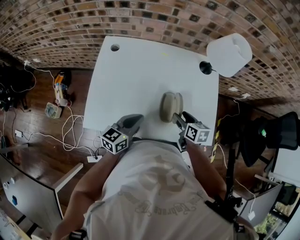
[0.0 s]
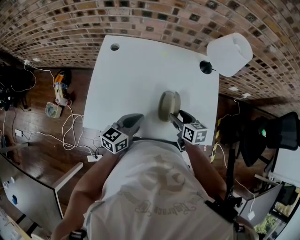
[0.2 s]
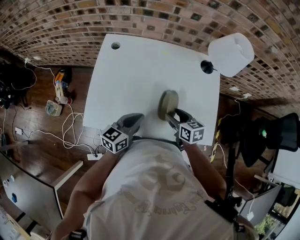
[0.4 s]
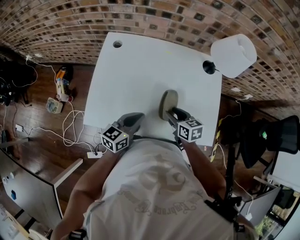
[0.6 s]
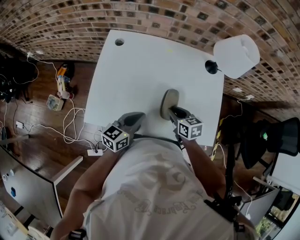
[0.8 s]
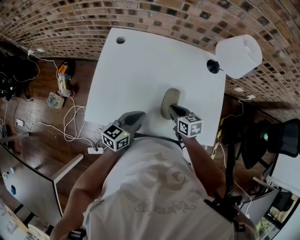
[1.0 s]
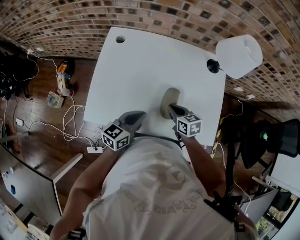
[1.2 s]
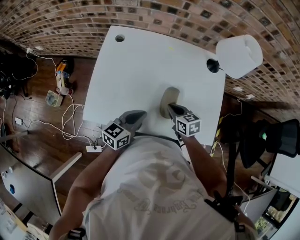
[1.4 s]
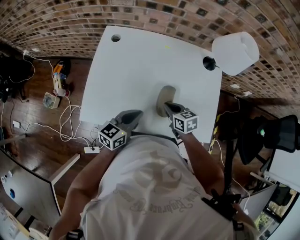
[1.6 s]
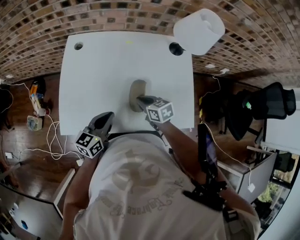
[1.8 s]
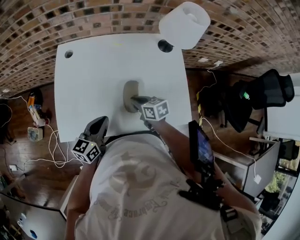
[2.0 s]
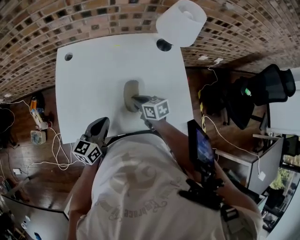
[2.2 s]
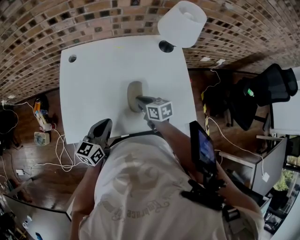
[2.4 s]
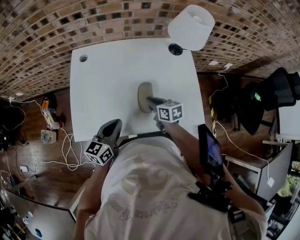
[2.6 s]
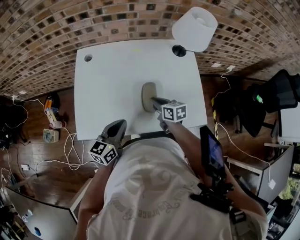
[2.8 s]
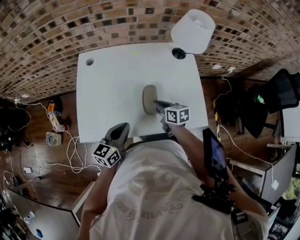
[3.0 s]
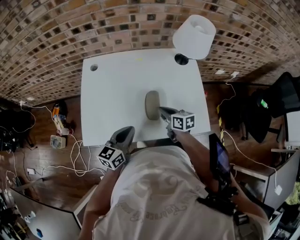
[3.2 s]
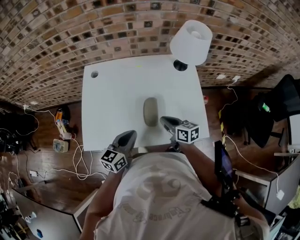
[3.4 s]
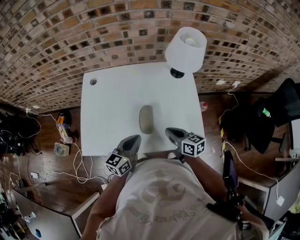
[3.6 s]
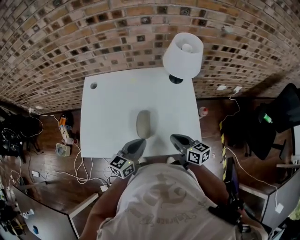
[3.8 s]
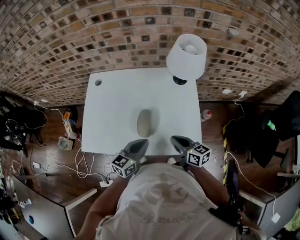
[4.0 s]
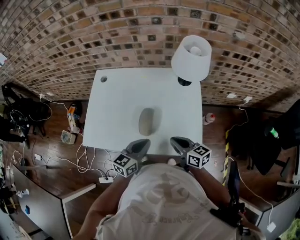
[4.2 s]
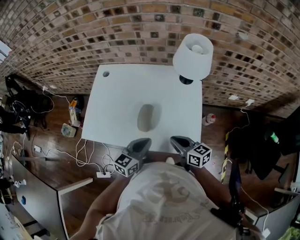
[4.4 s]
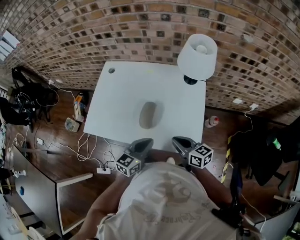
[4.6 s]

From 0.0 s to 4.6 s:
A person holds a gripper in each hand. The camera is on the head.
From 0.0 s to 1.6 s: The right gripper heads to the left, covering approximately 5 cm, rotates about 20 degrees, and closes its fingers.
From 1.6 s to 3.0 s: The right gripper swivels roughly 20 degrees. Meanwhile the left gripper shifts by approximately 5 cm.
From 3.0 s to 4.6 s: The left gripper is displaced to the right by roughly 20 cm, while the right gripper is displaced to the right, backward and upward by roughly 20 cm, and turns by roughly 30 degrees.

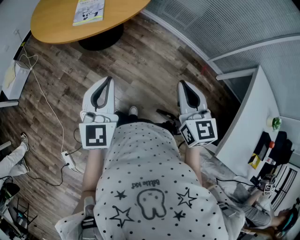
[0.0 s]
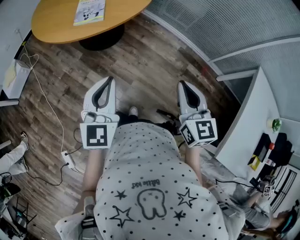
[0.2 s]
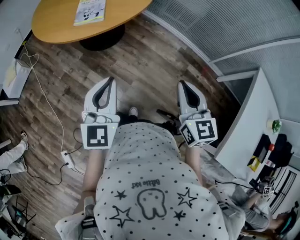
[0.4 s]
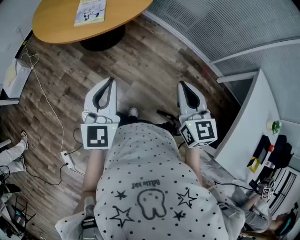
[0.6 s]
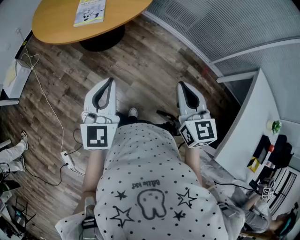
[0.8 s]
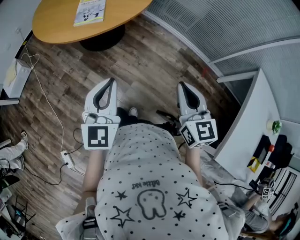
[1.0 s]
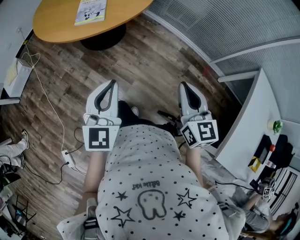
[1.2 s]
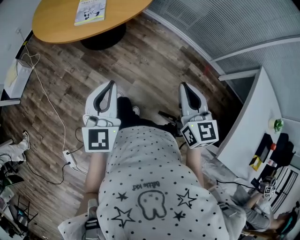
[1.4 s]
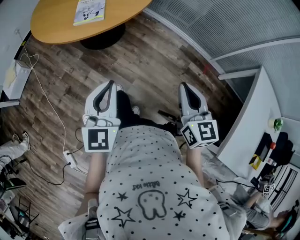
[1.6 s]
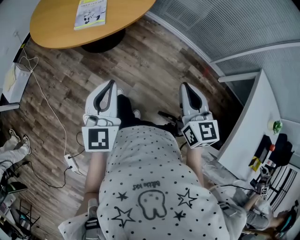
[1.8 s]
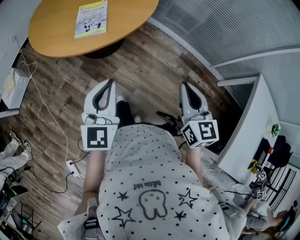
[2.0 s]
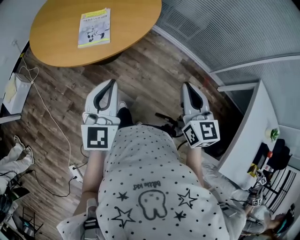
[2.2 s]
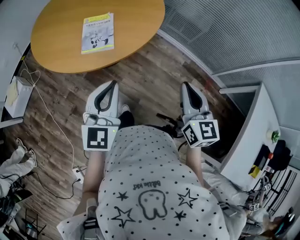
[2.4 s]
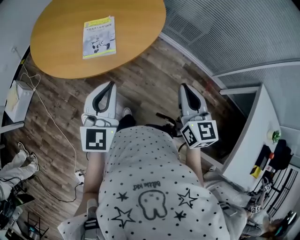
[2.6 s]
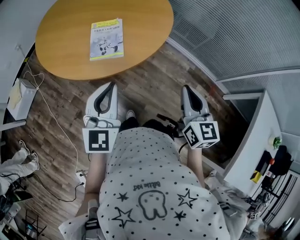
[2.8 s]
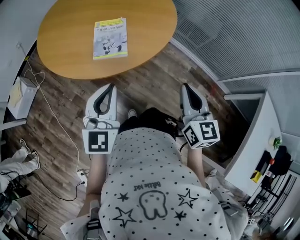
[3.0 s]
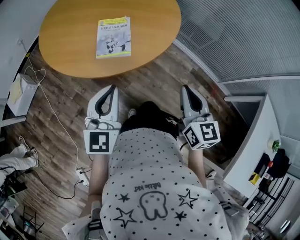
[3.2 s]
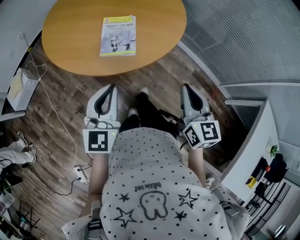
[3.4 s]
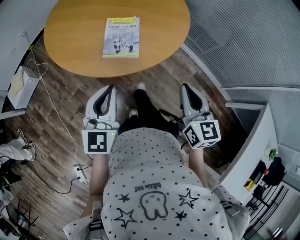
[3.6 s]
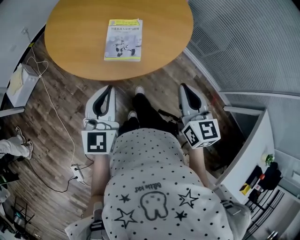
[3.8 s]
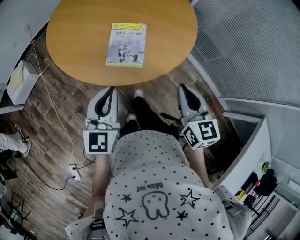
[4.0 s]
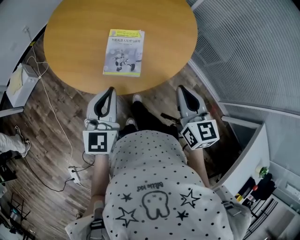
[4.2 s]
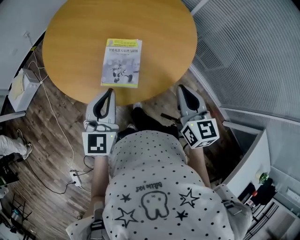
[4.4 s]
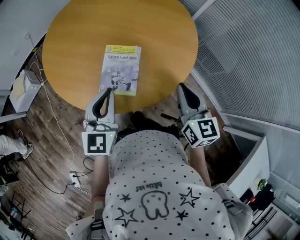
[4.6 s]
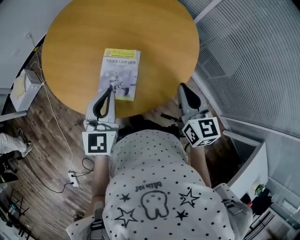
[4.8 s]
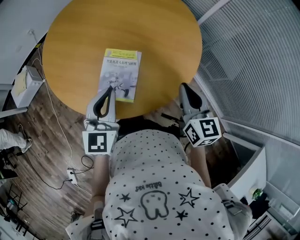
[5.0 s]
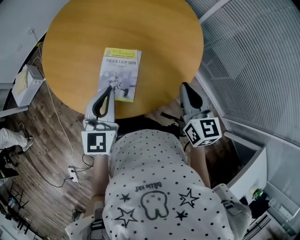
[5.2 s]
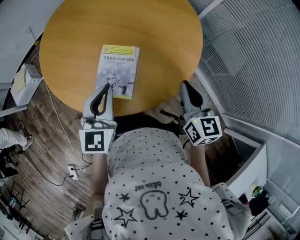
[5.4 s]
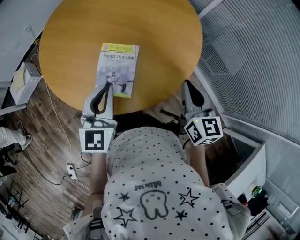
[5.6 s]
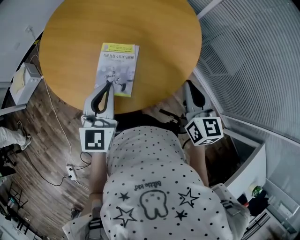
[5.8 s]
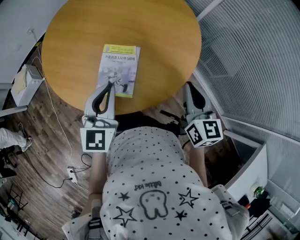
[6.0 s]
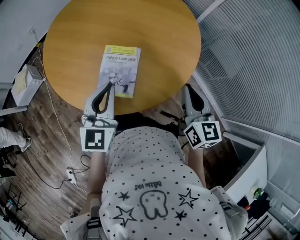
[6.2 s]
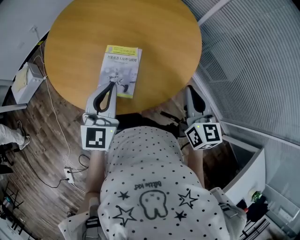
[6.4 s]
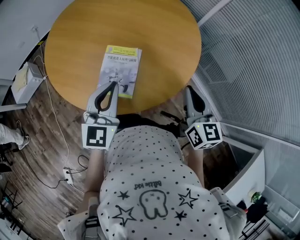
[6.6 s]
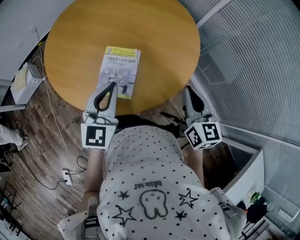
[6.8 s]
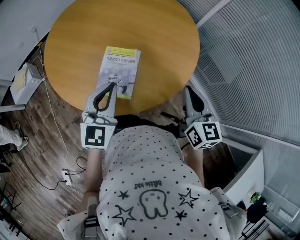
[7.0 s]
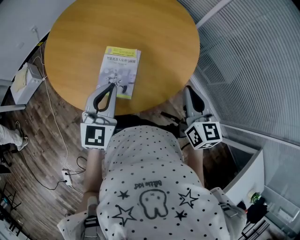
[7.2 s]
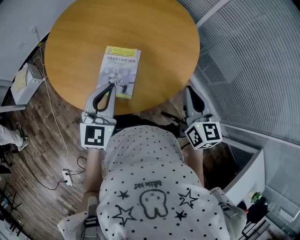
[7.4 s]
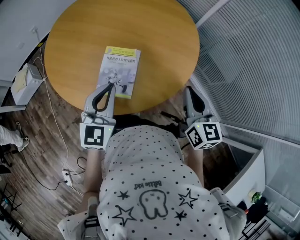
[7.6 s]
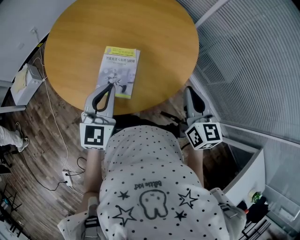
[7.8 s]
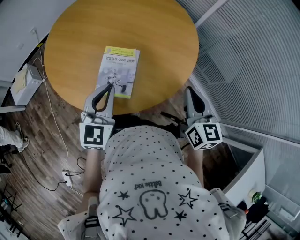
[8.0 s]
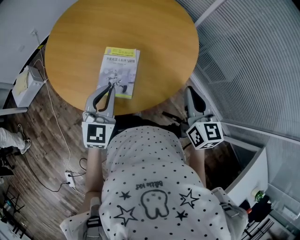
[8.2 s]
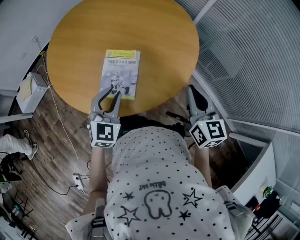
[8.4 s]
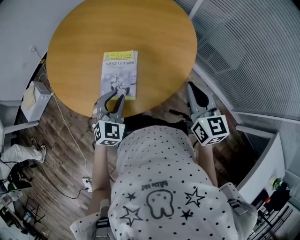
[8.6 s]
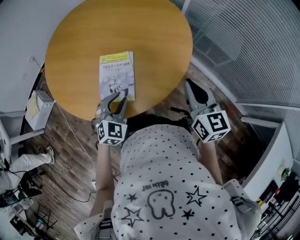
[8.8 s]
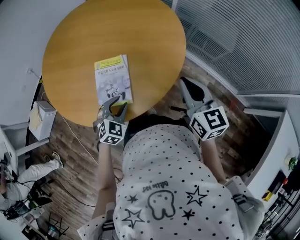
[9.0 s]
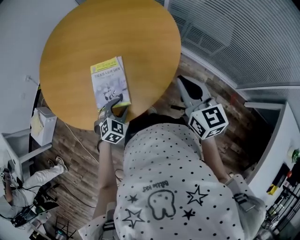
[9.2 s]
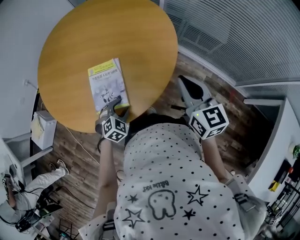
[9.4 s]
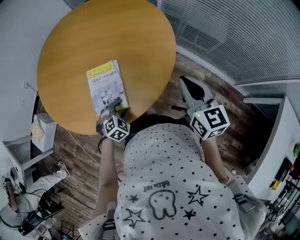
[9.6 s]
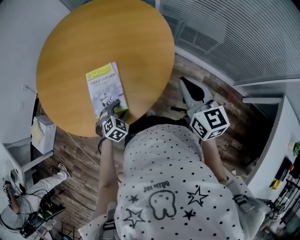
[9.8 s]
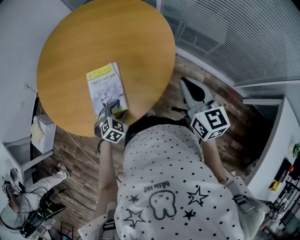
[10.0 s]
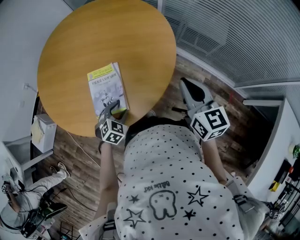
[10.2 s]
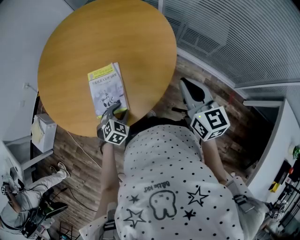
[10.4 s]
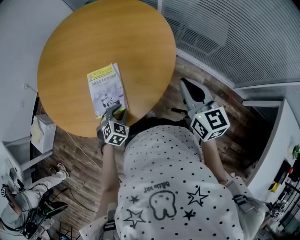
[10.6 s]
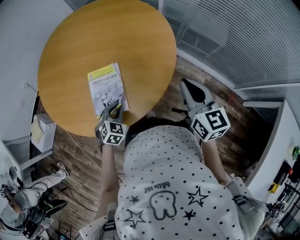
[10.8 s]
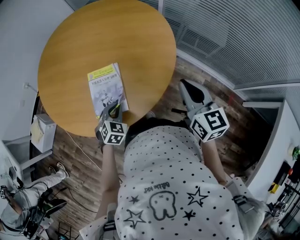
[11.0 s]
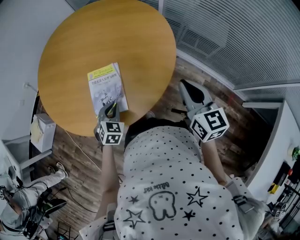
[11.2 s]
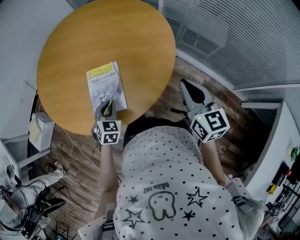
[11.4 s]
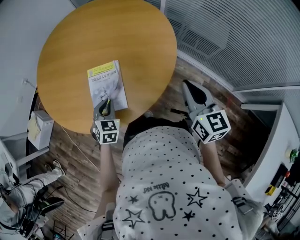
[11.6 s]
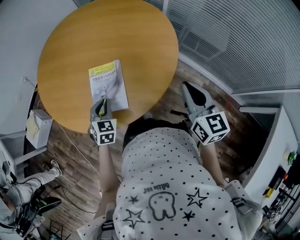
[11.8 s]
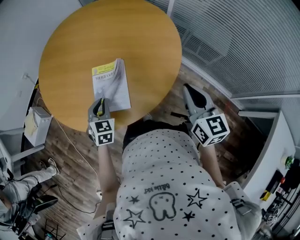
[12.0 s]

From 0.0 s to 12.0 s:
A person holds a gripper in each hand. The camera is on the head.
From 0.0 s to 1.6 s: The grippers stay close to where they were, moving slightly.
From 1.6 s to 3.0 s: Both grippers travel together forward and to the left, some 25 cm.
From 3.0 s to 4.4 s: The grippers both shift forward by approximately 20 cm.
From 4.4 s to 6.0 s: The right gripper moves forward and to the right, approximately 10 cm. Meanwhile the left gripper shifts roughly 5 cm forward.
From 6.0 s to 7.6 s: The grippers stay close to where they were, moving slightly.
From 7.6 s to 9.0 s: The left gripper is displaced downward by about 20 cm, tilts its fingers approximately 30 degrees downward, and opens up.
From 9.0 s to 10.4 s: The left gripper shifts roughly 5 cm downward.
From 10.4 s to 12.0 s: The left gripper travels to the left and upward by some 15 cm, turns by some 40 degrees, and closes its fingers.

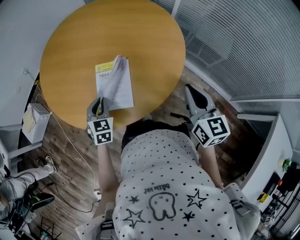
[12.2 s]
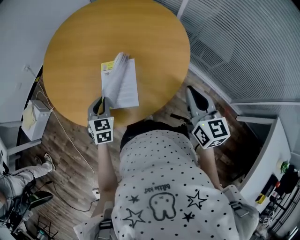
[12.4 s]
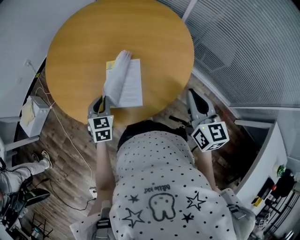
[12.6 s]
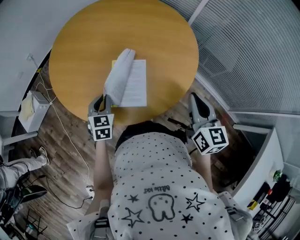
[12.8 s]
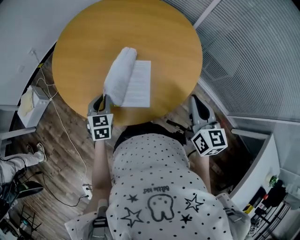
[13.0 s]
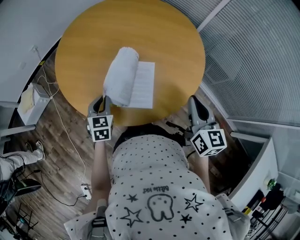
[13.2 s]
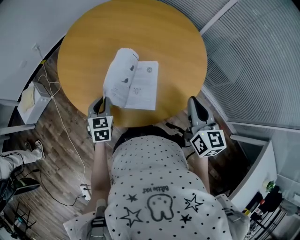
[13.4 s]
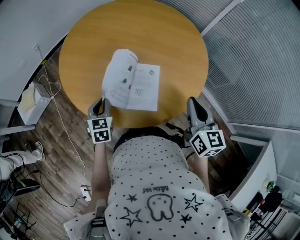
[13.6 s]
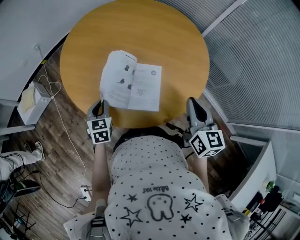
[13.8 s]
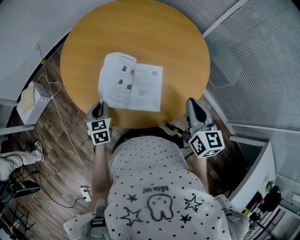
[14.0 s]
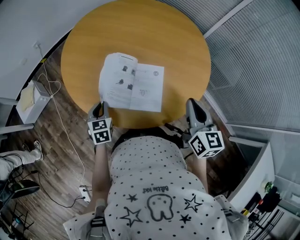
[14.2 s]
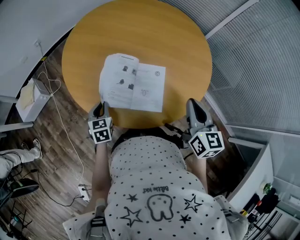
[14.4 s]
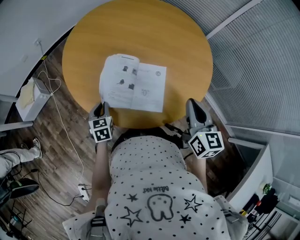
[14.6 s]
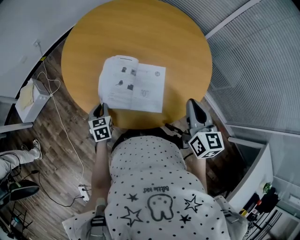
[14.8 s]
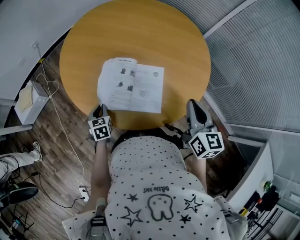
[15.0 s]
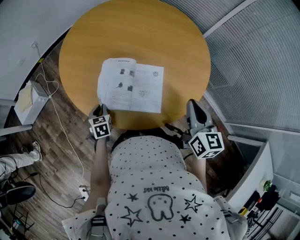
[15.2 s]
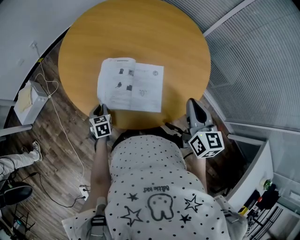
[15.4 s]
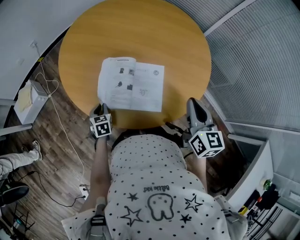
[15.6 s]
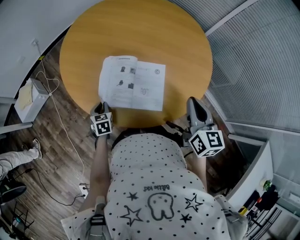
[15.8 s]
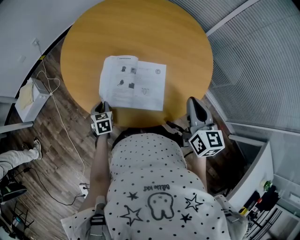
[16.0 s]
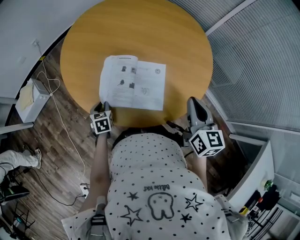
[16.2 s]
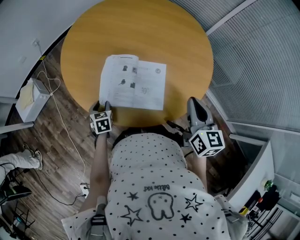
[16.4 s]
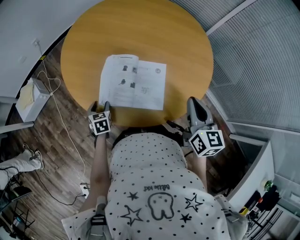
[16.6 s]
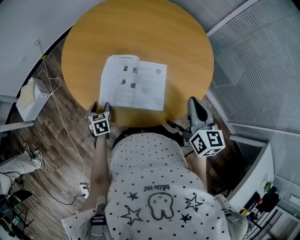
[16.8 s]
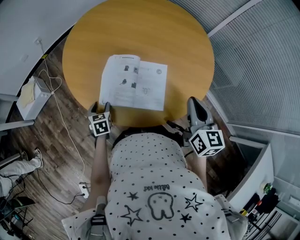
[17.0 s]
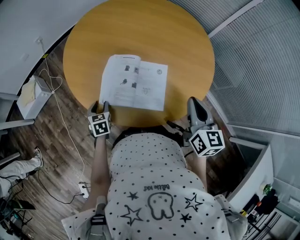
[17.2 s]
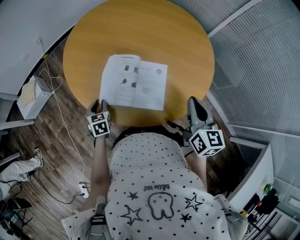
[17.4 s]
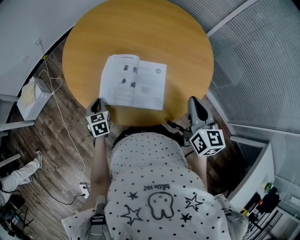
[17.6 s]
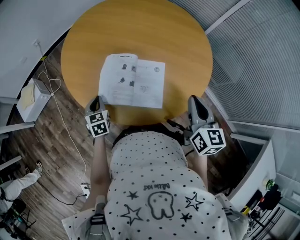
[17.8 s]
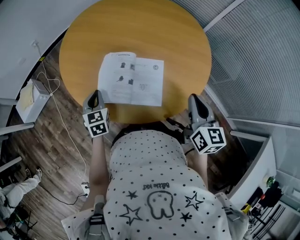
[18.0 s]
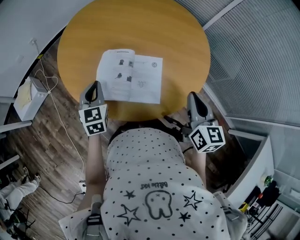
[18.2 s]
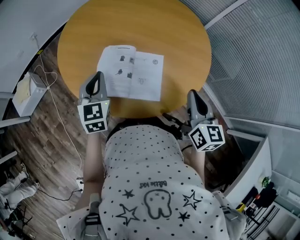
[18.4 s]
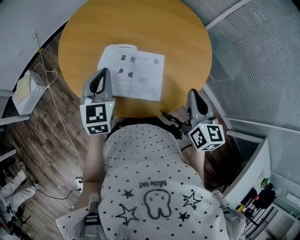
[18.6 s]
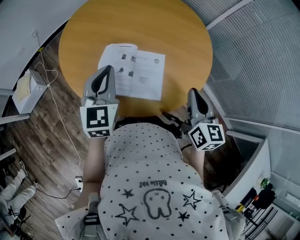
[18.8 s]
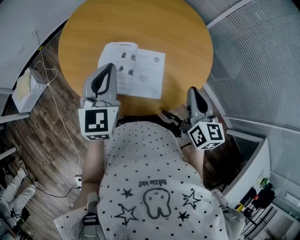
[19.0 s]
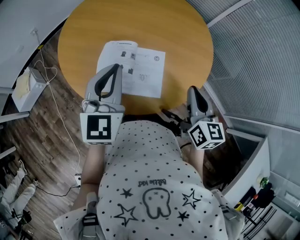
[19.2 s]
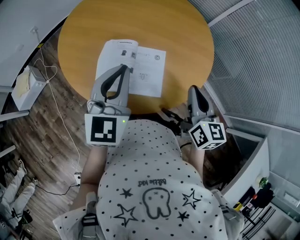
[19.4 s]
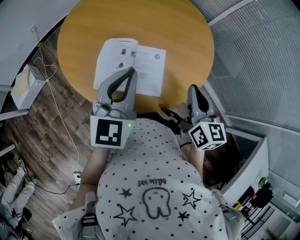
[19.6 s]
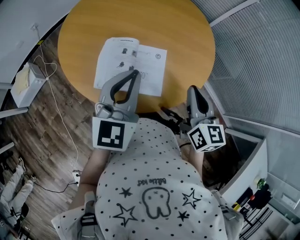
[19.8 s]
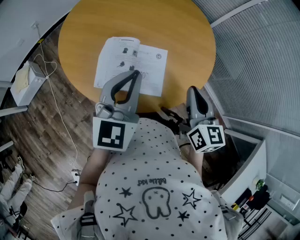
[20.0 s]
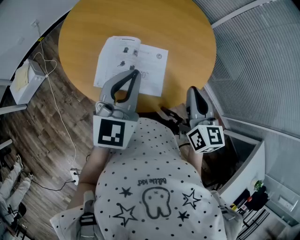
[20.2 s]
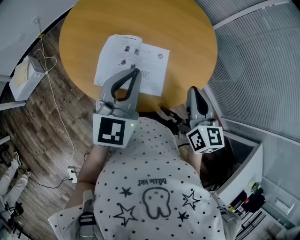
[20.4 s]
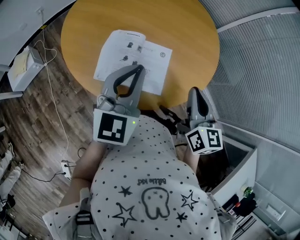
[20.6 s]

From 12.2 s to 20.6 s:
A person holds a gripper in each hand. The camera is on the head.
From 12.2 s to 13.6 s: Both grippers move to the left, about 15 cm.
From 13.6 s to 15.0 s: The left gripper travels downward by roughly 10 cm.
From 15.0 s to 16.4 s: The left gripper opens its fingers.
From 16.4 s to 17.8 s: The left gripper moves upward, about 5 cm, and closes.
From 17.8 s to 19.2 s: The left gripper travels upward and to the right by approximately 30 cm, and tilts its fingers about 30 degrees upward.
From 19.2 s to 20.6 s: The grippers make only small movements.
